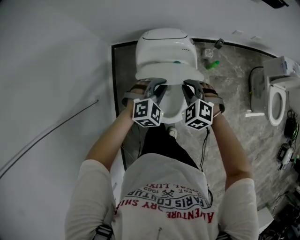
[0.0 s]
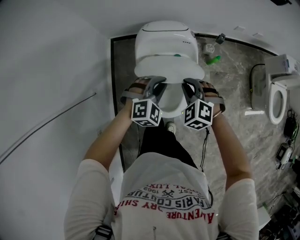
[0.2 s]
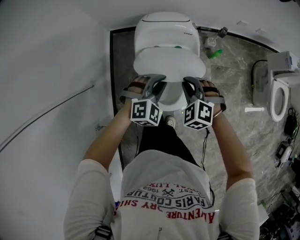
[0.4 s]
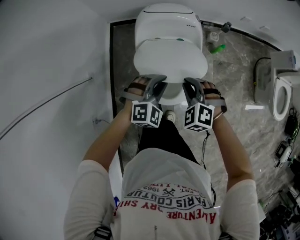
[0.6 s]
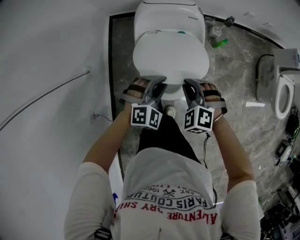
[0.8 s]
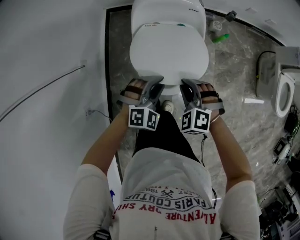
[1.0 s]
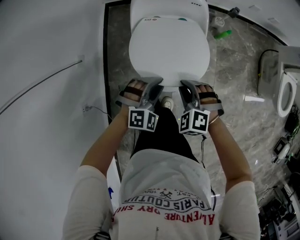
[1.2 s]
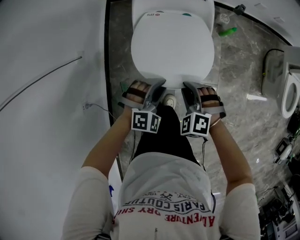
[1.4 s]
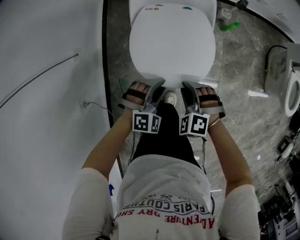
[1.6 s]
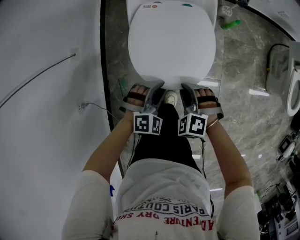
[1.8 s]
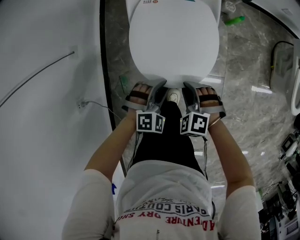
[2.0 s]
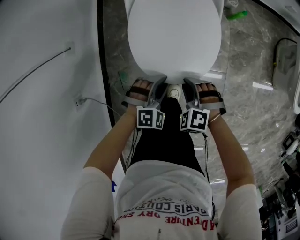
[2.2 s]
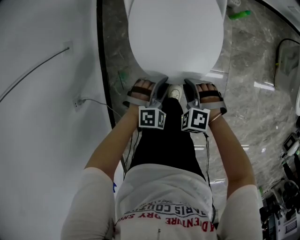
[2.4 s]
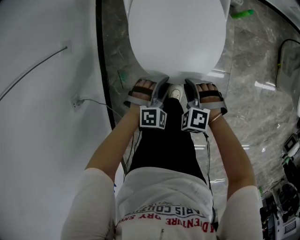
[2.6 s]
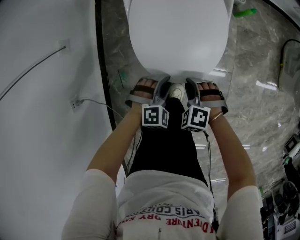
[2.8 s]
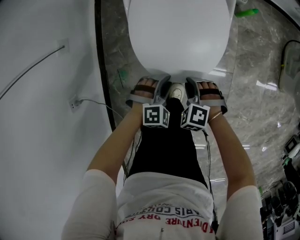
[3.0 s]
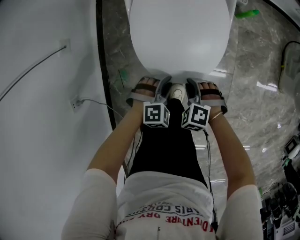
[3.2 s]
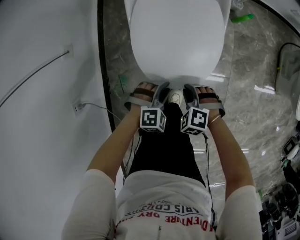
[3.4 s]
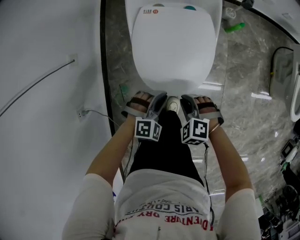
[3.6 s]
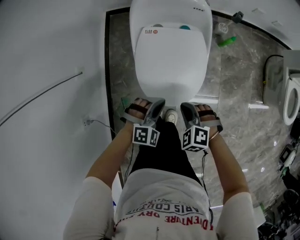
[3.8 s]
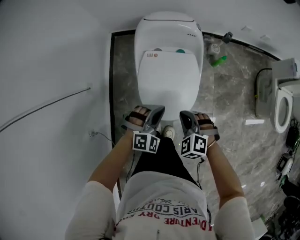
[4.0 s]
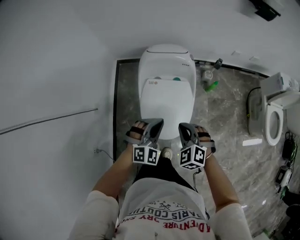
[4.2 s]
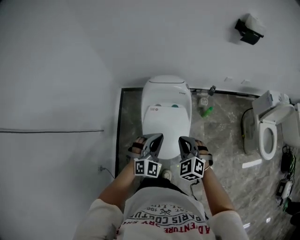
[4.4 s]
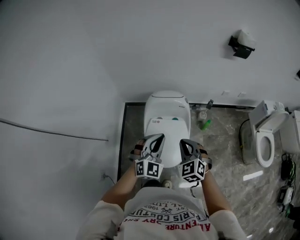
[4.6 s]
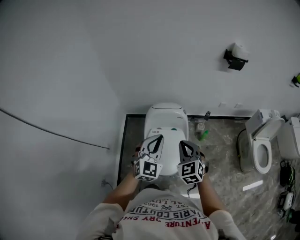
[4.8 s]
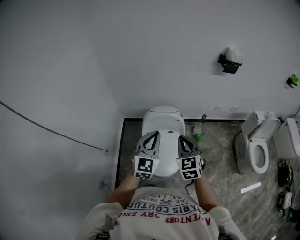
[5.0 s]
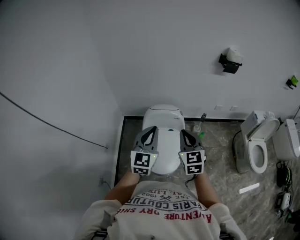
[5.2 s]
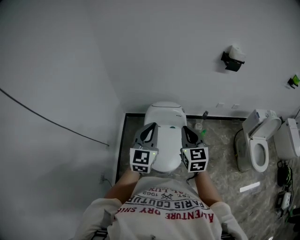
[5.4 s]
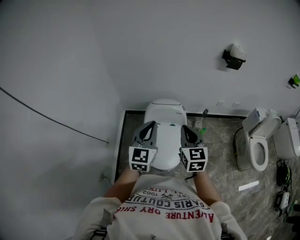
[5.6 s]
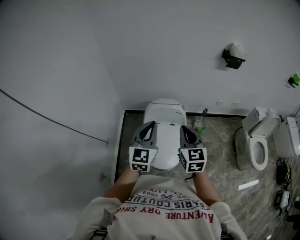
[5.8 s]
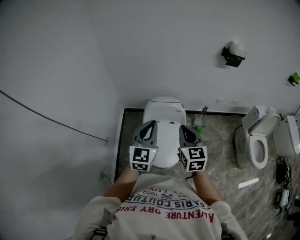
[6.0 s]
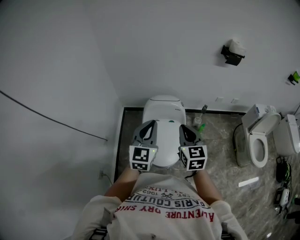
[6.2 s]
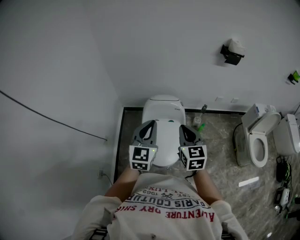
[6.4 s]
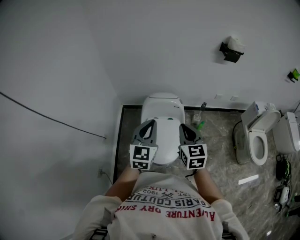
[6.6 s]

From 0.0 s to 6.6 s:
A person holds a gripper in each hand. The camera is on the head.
From 0.0 s to 1.6 s: The right gripper heads downward and backward, covering roughly 30 cm, while the left gripper moves backward and downward, about 30 cm.
From 1.6 s to 3.2 s: Both grippers move downward, roughly 20 cm.
From 3.2 s to 5.0 s: The grippers both shift upward by about 70 cm. The right gripper tilts its fingers about 50 degrees upward; the left gripper angles its fingers upward, by approximately 60 degrees, and closes up.
From 5.0 s to 6.6 s: The grippers move only a little.

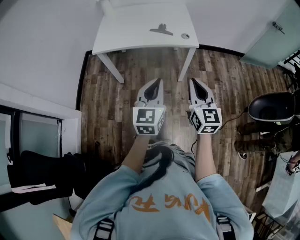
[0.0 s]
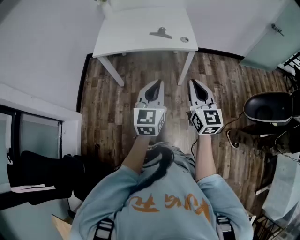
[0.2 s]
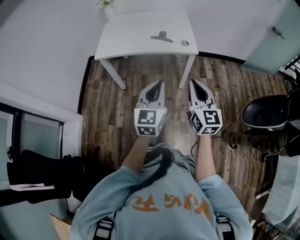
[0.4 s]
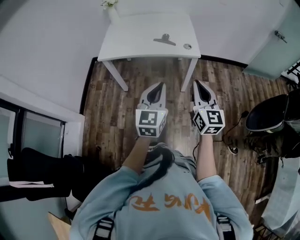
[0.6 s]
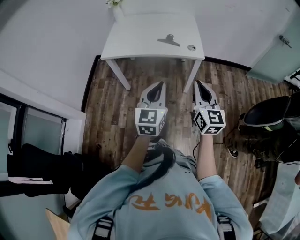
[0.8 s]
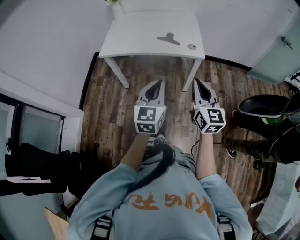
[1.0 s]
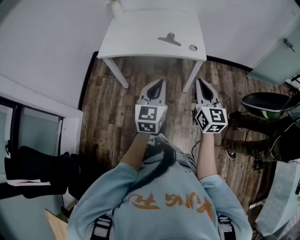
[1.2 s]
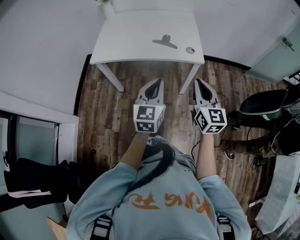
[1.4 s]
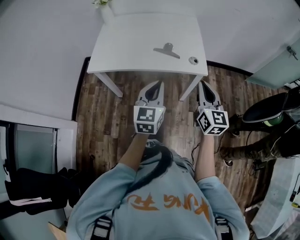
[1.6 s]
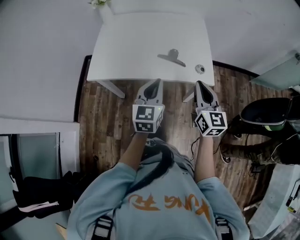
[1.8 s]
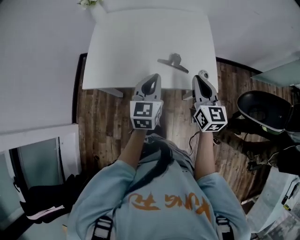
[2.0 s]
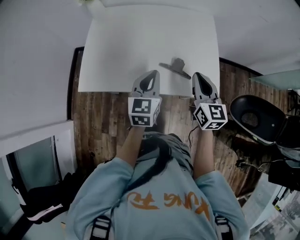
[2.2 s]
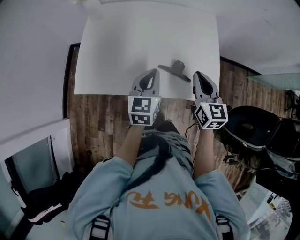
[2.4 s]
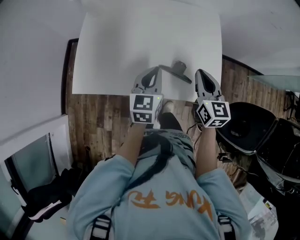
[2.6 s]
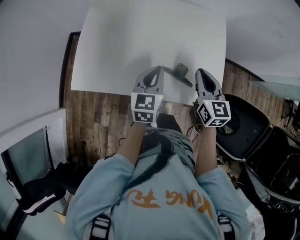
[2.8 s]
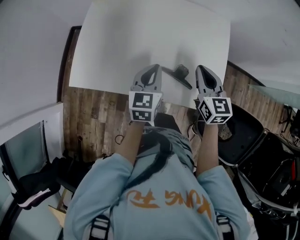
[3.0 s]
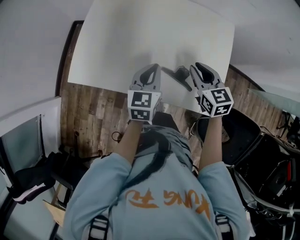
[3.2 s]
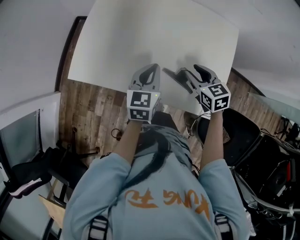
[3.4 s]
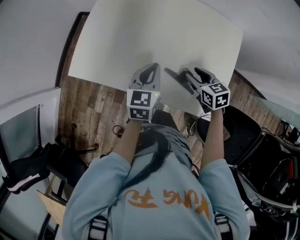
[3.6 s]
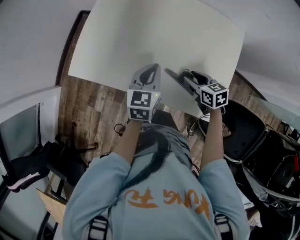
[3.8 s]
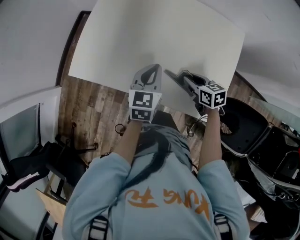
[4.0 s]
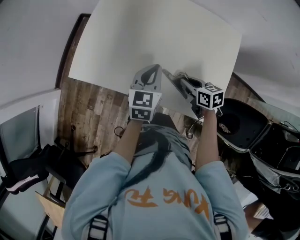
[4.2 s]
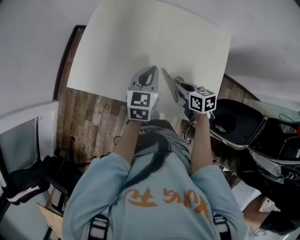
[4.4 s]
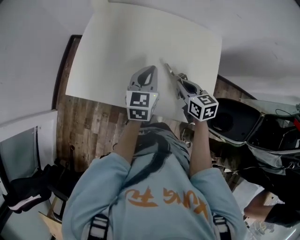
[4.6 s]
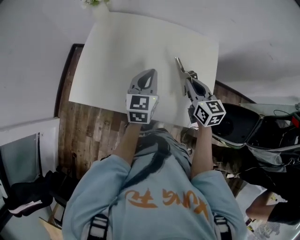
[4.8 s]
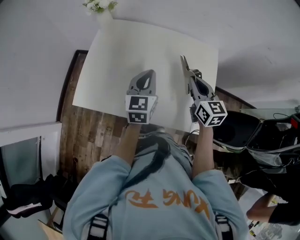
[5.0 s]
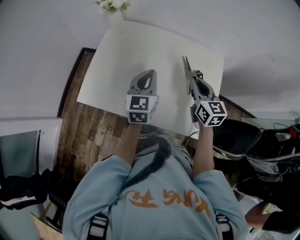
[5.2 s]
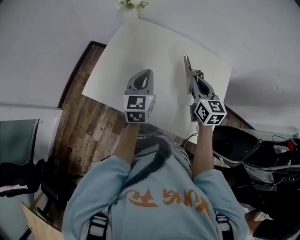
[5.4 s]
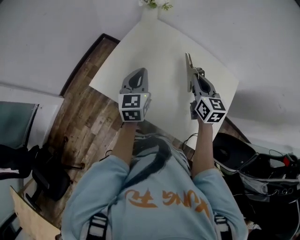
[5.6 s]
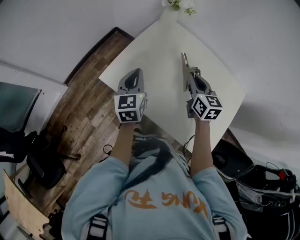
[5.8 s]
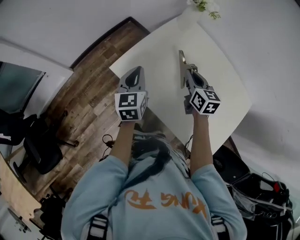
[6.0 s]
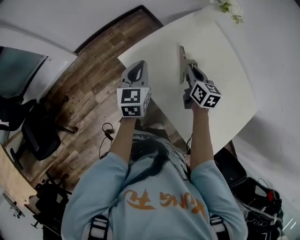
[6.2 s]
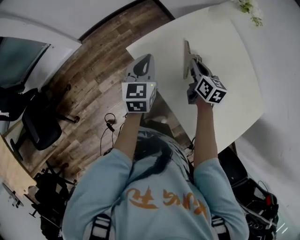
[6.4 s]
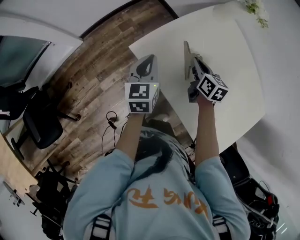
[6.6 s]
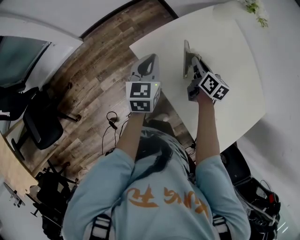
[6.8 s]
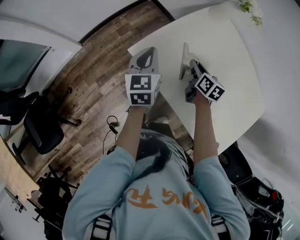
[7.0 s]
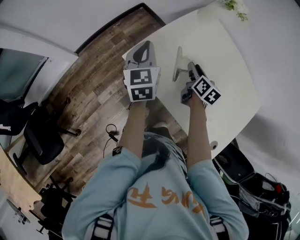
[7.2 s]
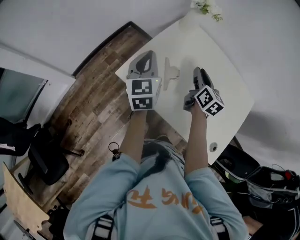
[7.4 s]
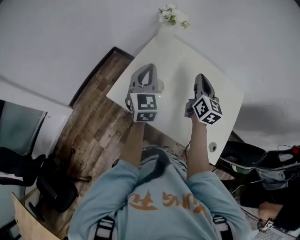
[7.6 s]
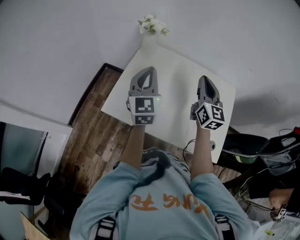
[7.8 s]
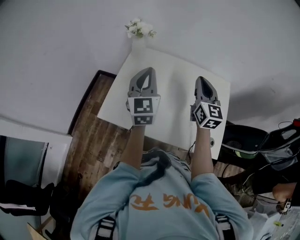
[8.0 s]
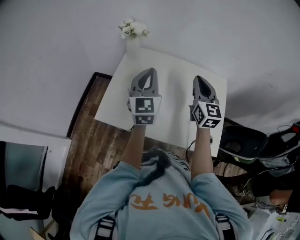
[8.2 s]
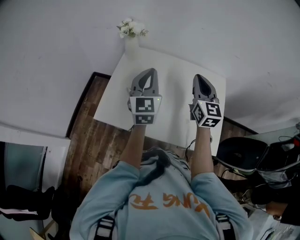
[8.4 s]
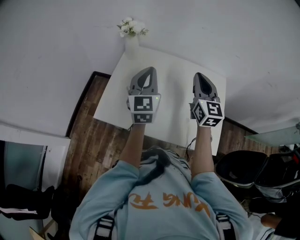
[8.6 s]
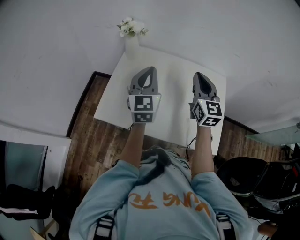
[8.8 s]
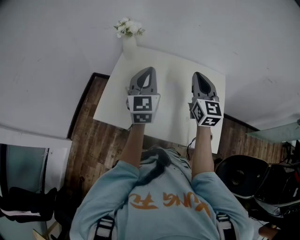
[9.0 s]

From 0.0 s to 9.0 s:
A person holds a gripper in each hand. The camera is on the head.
From 0.0 s to 1.6 s: The two grippers go some 20 cm forward.
From 1.6 s to 3.0 s: The two grippers go approximately 35 cm forward. The right gripper turns by approximately 30 degrees.
From 3.0 s to 4.4 s: The right gripper travels downward by roughly 15 cm, changes its angle by roughly 40 degrees, and opens, then closes once more.
From 4.4 s to 6.0 s: The right gripper changes place by approximately 25 cm, and changes its angle by about 30 degrees. The left gripper shifts by some 30 cm, and swivels about 40 degrees.
From 6.0 s to 7.6 s: Both grippers travel together upward, about 10 cm. The left gripper swivels approximately 30 degrees, while the right gripper turns by approximately 30 degrees, and opens, then closes again.
From 7.6 s to 9.0 s: The right gripper heads to the right and upward, covering roughly 10 cm, while the left gripper shifts some 15 cm to the right.

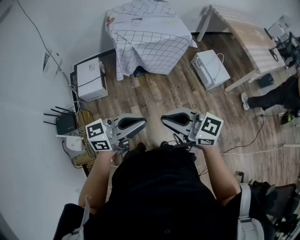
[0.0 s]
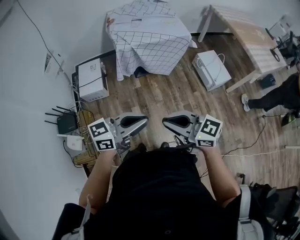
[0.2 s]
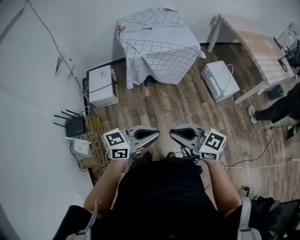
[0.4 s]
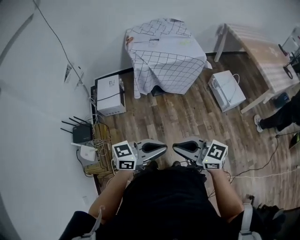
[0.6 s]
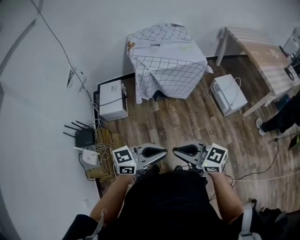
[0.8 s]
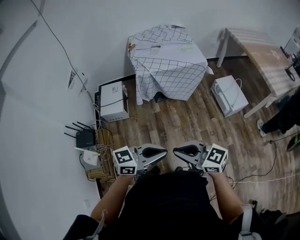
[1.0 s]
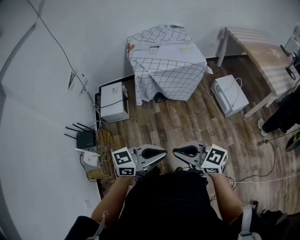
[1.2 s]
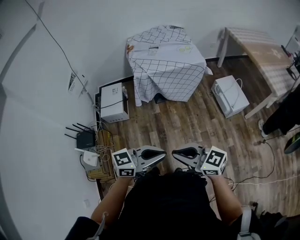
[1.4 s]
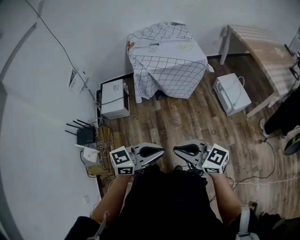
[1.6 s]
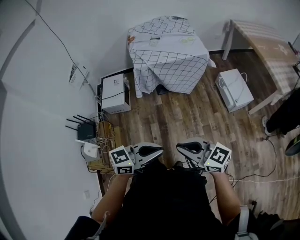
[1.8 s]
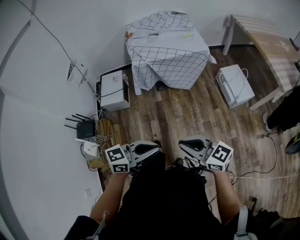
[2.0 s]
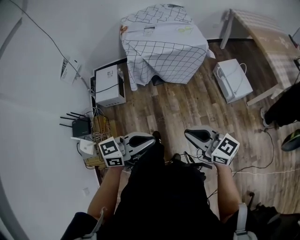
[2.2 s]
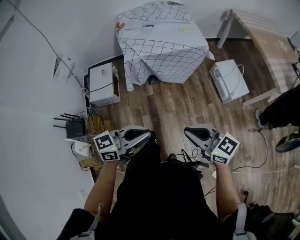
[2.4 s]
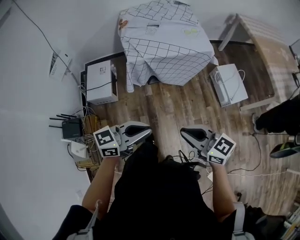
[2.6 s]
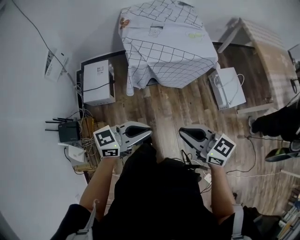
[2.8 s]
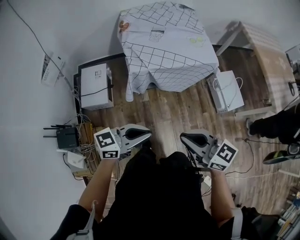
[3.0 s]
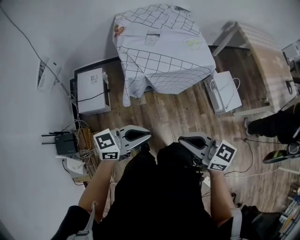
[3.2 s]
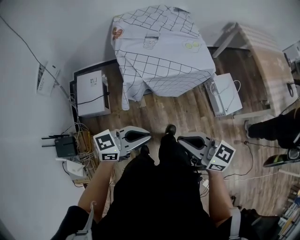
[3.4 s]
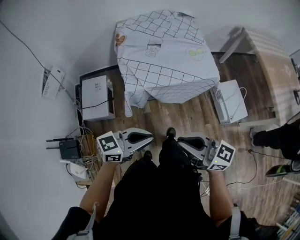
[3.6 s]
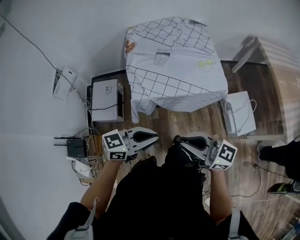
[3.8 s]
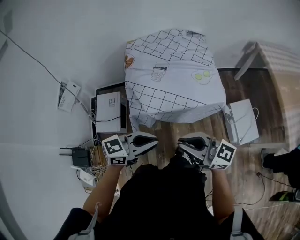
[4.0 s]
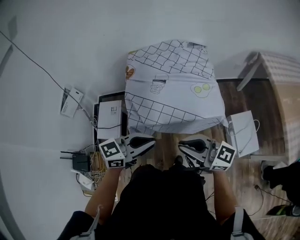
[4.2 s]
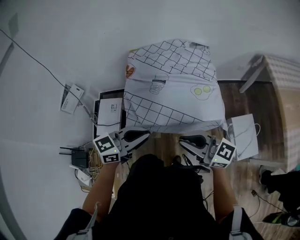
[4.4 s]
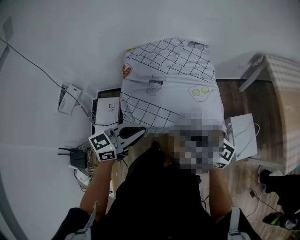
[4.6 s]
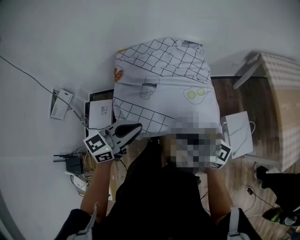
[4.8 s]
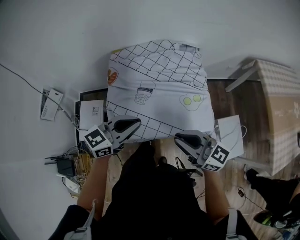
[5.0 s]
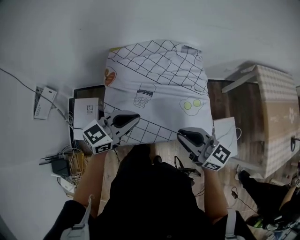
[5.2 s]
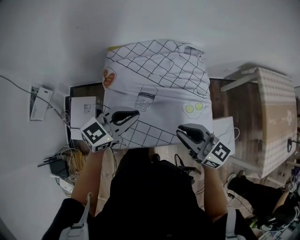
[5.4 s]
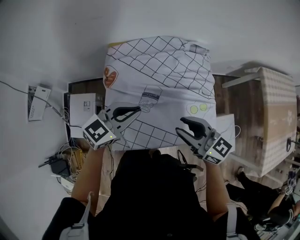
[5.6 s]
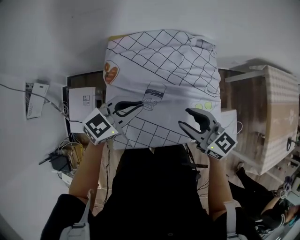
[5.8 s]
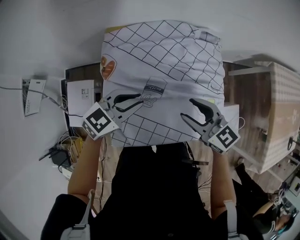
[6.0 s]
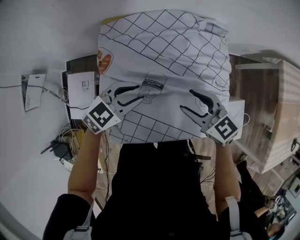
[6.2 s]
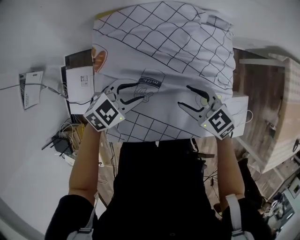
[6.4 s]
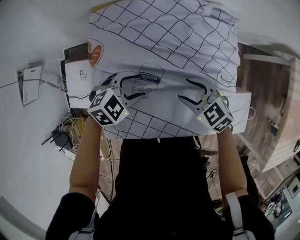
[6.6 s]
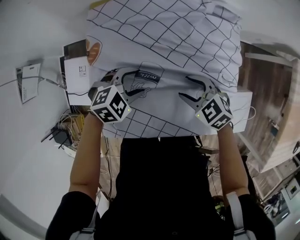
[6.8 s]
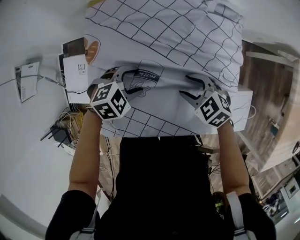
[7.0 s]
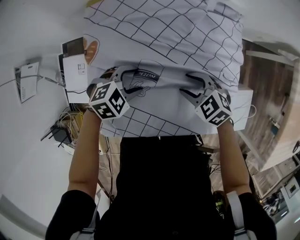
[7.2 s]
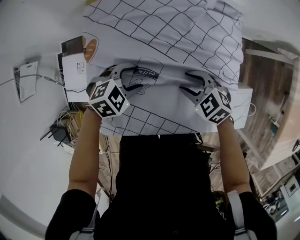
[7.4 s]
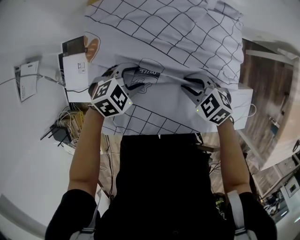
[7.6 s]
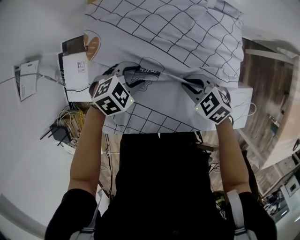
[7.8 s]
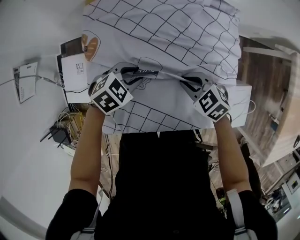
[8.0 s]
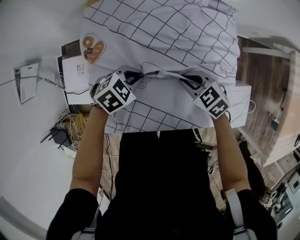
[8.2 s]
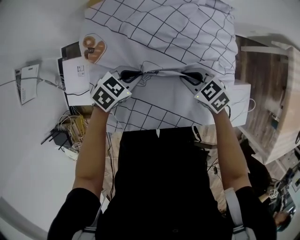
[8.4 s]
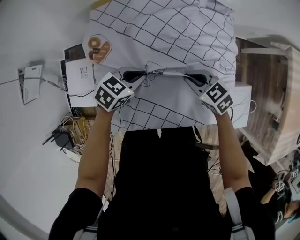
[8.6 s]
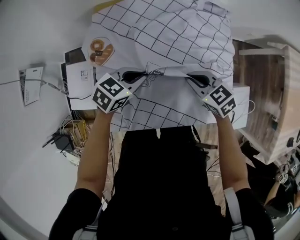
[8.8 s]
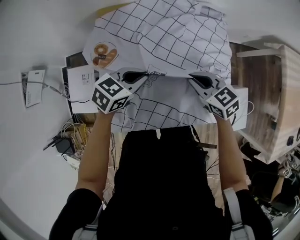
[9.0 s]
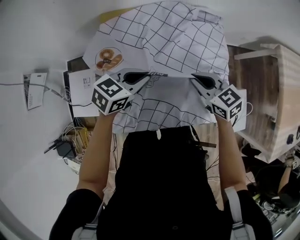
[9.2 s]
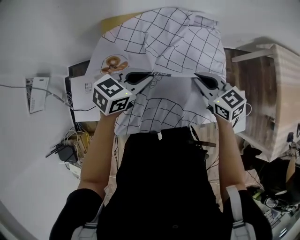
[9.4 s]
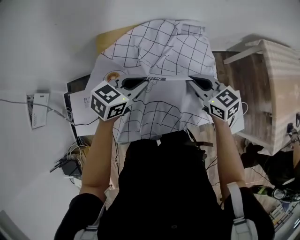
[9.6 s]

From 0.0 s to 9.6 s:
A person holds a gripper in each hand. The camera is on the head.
From 0.0 s to 1.6 s: The left gripper changes place by some 10 cm. The right gripper moves some 10 cm.
From 1.6 s to 3.2 s: The right gripper shifts by roughly 25 cm, while the left gripper changes place by about 30 cm.
From 3.2 s to 4.8 s: The left gripper shifts by some 40 cm, and turns by roughly 30 degrees; the right gripper shifts by approximately 35 cm, and turns by some 20 degrees.
From 4.8 s to 6.4 s: The right gripper ends up about 35 cm from where it was, tips its fingers downward by roughly 40 degrees, and opens up, while the left gripper shifts by some 35 cm, points its fingers roughly 30 degrees further downward, and opens its fingers.
From 6.4 s to 8.0 s: Both grippers move downward, approximately 10 cm. The left gripper opens, then closes again. Meanwhile the right gripper closes its fingers.
From 8.0 s to 9.6 s: The grippers both shift upward by about 15 cm. The left gripper tips its fingers upward by roughly 30 degrees, and closes; the right gripper changes its angle by some 40 degrees.
